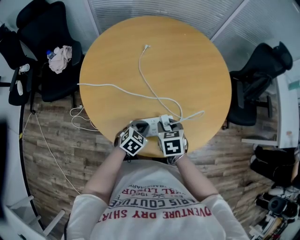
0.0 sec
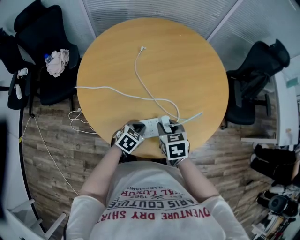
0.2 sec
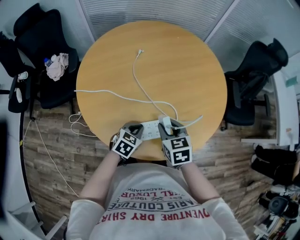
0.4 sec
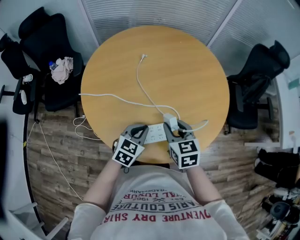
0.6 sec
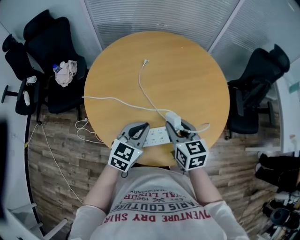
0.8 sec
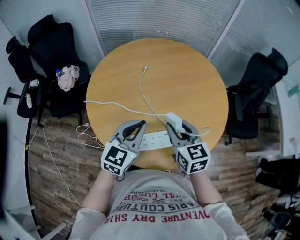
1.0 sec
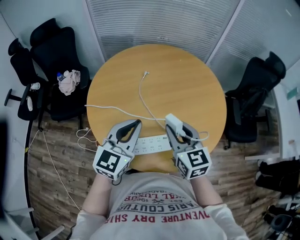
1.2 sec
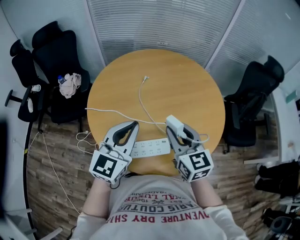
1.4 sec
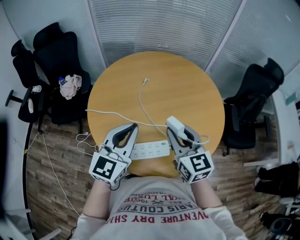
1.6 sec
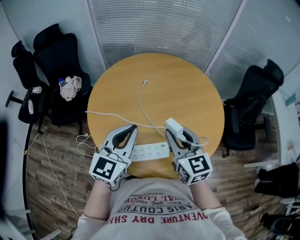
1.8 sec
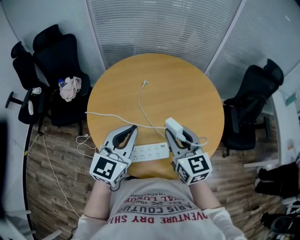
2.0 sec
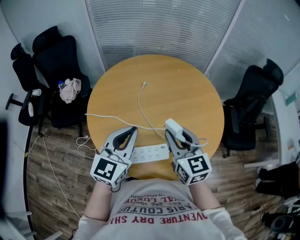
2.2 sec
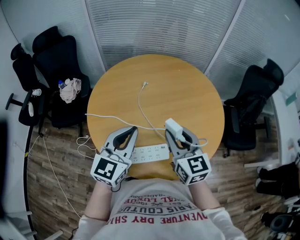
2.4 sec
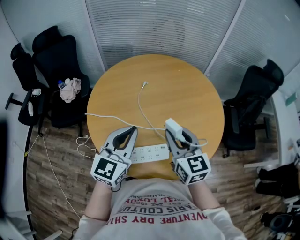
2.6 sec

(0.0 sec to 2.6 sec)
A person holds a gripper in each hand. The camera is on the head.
0.0 sec - 1.2 sec: The left gripper heads upward, covering some 30 cm, and points its fingers approximately 40 degrees further upward. The right gripper shifts some 20 cm upward, and points its fingers approximately 40 degrees further upward.
1.2 sec - 2.6 sec: The grippers move only a little.

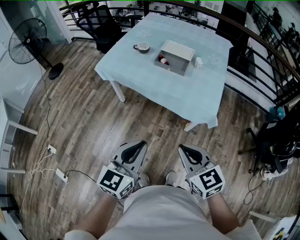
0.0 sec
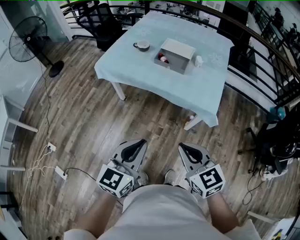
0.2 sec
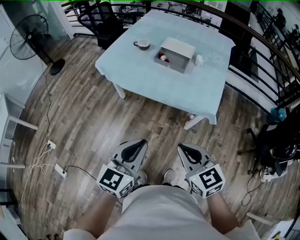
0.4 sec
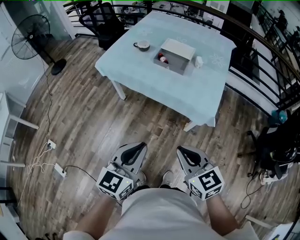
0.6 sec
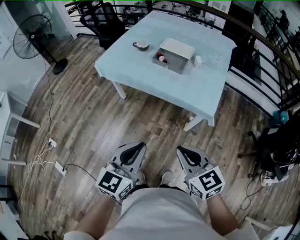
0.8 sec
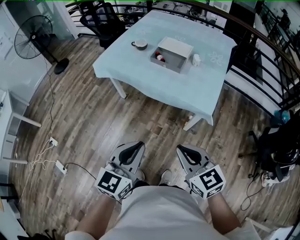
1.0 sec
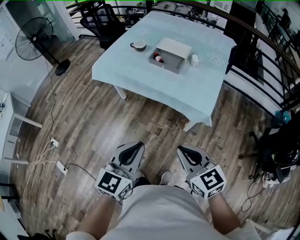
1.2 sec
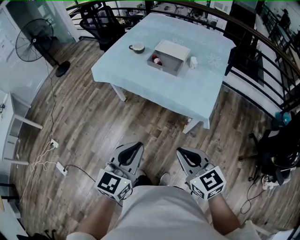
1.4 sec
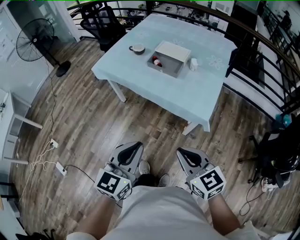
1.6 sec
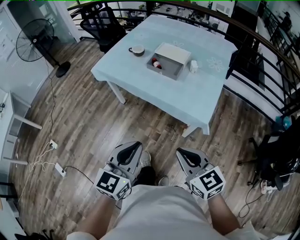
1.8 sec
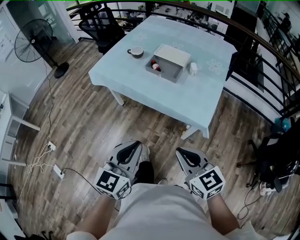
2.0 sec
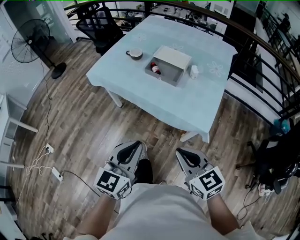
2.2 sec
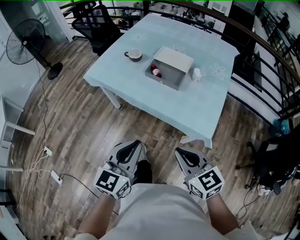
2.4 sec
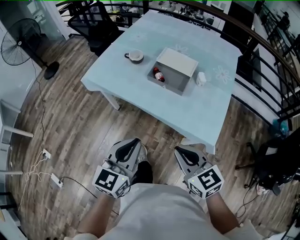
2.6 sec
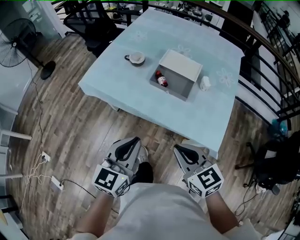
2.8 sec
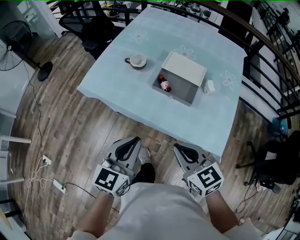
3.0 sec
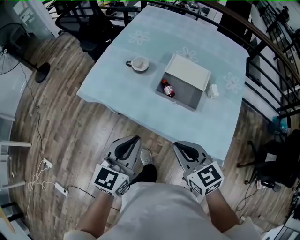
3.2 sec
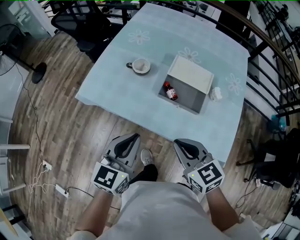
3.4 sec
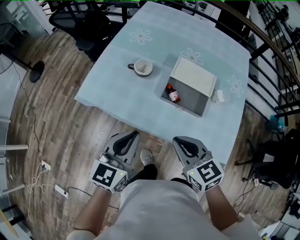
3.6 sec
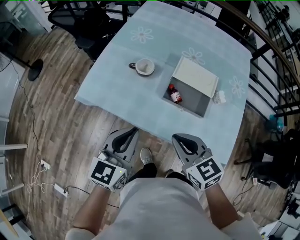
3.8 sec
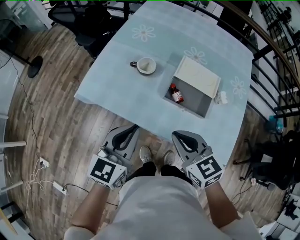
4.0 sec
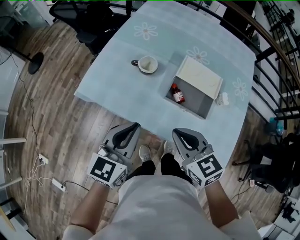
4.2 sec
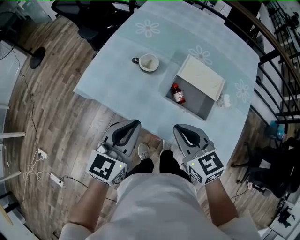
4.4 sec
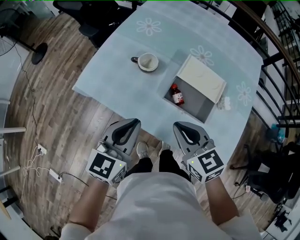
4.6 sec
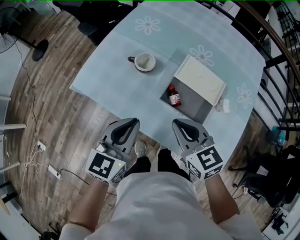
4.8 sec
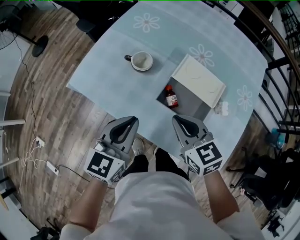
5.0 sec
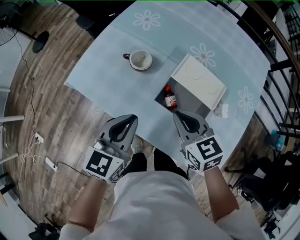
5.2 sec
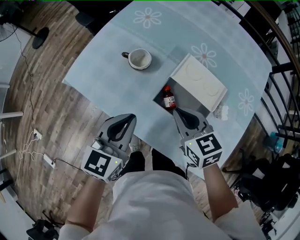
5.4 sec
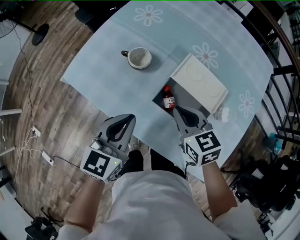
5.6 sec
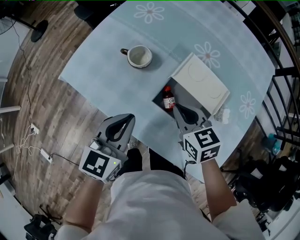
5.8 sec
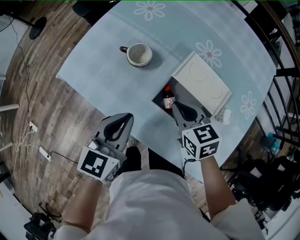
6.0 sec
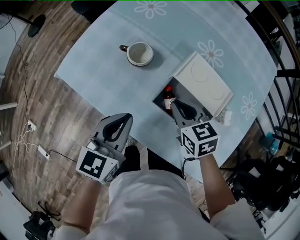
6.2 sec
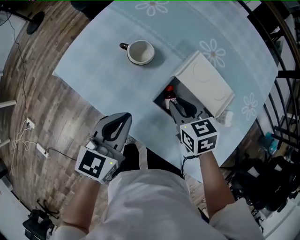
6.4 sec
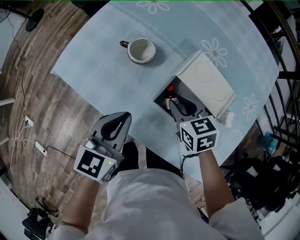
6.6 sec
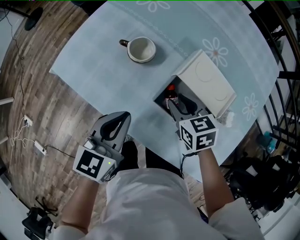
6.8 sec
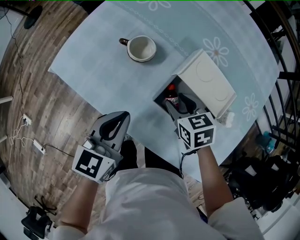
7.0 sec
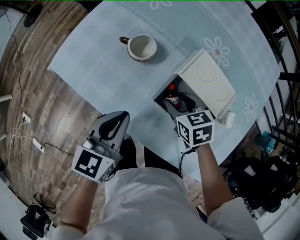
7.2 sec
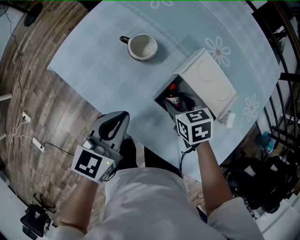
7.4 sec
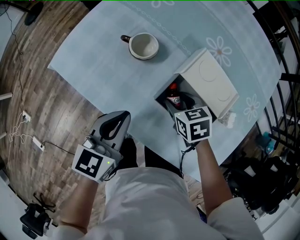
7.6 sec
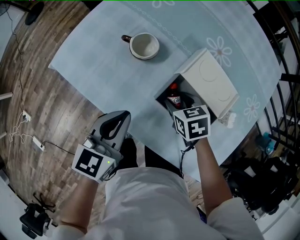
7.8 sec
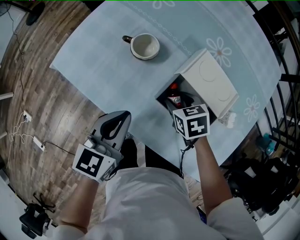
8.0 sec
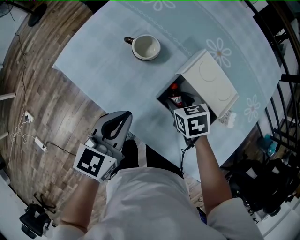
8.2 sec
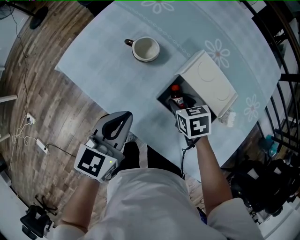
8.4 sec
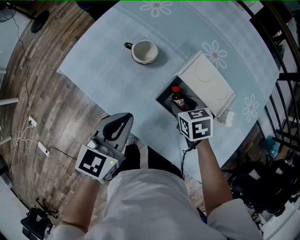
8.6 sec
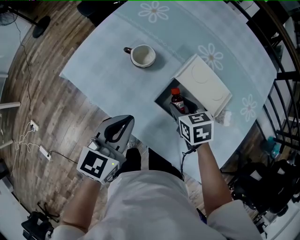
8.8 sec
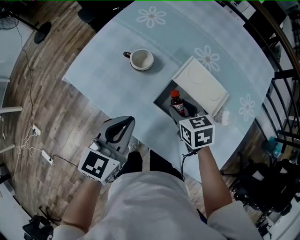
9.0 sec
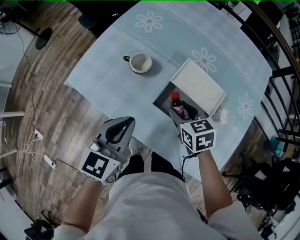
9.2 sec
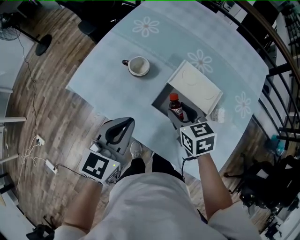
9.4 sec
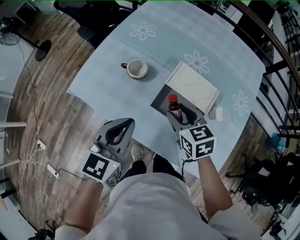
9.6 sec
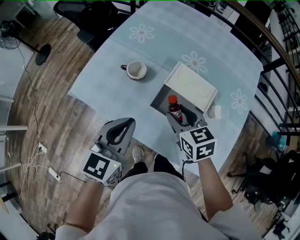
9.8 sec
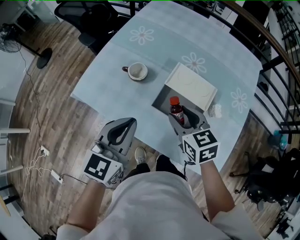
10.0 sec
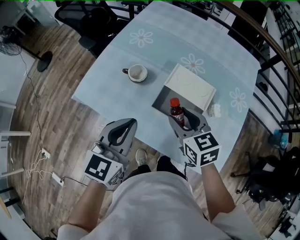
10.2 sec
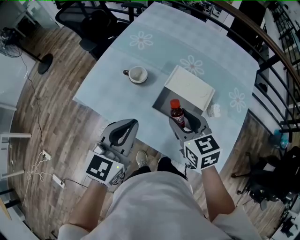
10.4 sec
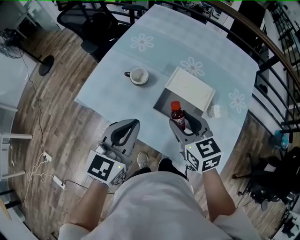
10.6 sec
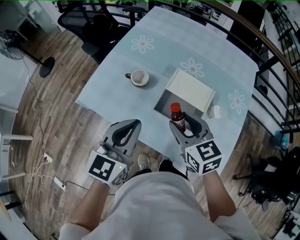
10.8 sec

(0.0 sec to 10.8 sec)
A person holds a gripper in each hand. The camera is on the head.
0.0 sec - 1.6 sec: The two grippers go roughly 10 cm to the right.
1.6 sec - 3.0 sec: The grippers both shift forward by about 30 cm.
3.0 sec - 4.6 sec: Both grippers move forward, about 20 cm.
4.6 sec - 6.2 sec: The right gripper shifts roughly 20 cm downward, forward and to the right; the left gripper travels downward and forward by approximately 10 cm.
6.2 sec - 7.8 sec: The right gripper heads downward, covering roughly 10 cm, and opens its fingers.
7.8 sec - 9.2 sec: The grippers both shift upward by roughly 10 cm.
9.2 sec - 10.8 sec: The right gripper heads upward and backward, covering roughly 15 cm. The left gripper shifts approximately 10 cm upward.

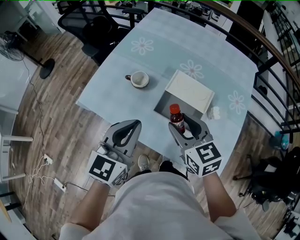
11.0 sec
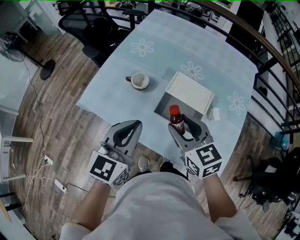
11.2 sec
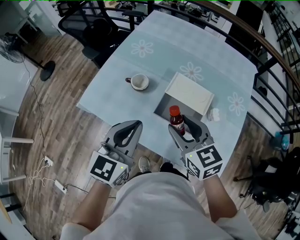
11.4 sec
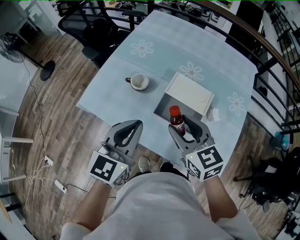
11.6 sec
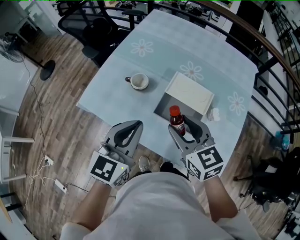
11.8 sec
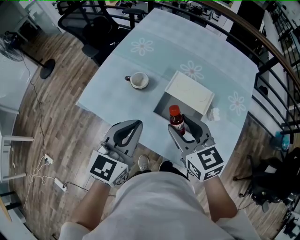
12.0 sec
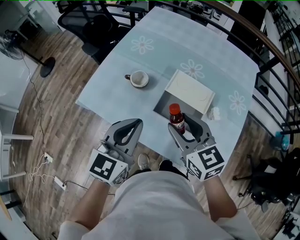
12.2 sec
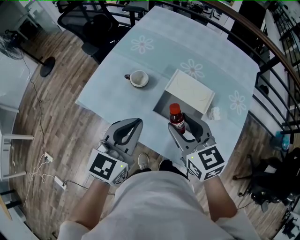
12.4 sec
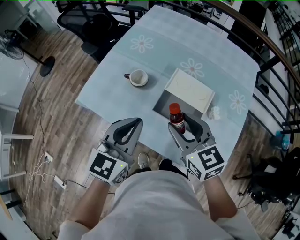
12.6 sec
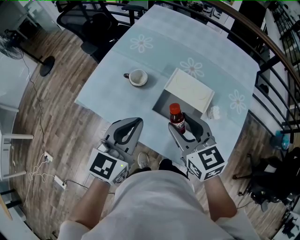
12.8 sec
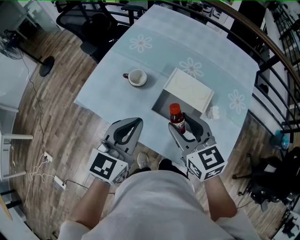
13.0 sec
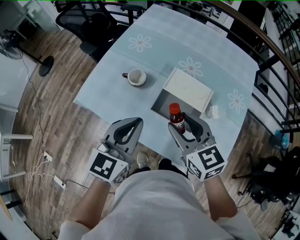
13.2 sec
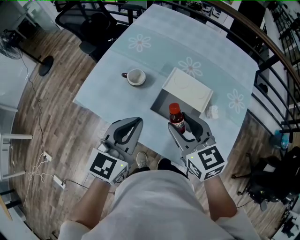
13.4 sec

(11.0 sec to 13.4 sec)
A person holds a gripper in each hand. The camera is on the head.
11.0 sec - 13.4 sec: The grippers make only small movements.

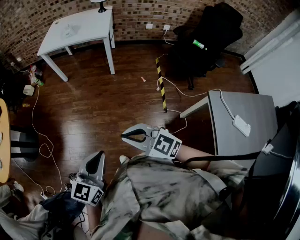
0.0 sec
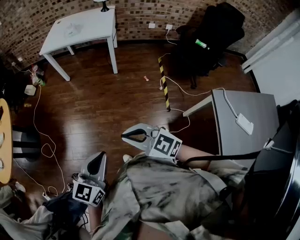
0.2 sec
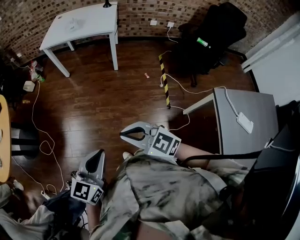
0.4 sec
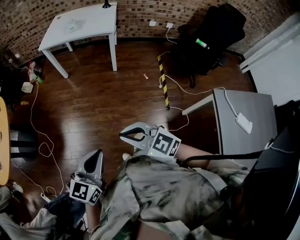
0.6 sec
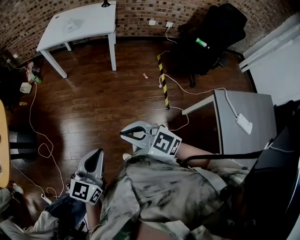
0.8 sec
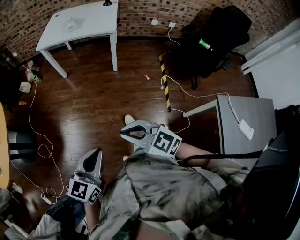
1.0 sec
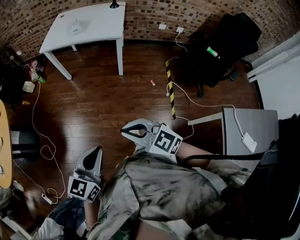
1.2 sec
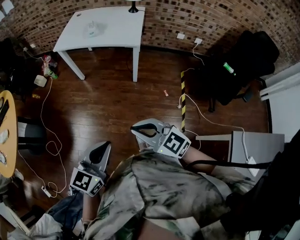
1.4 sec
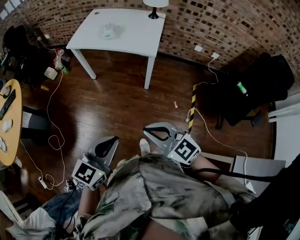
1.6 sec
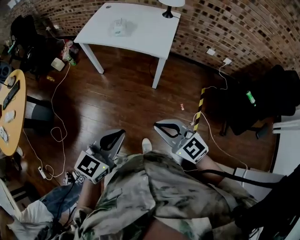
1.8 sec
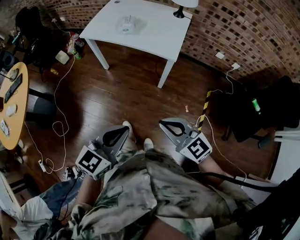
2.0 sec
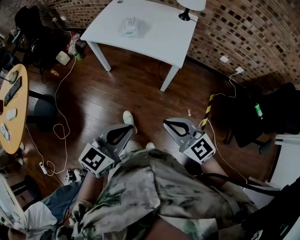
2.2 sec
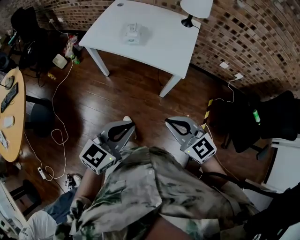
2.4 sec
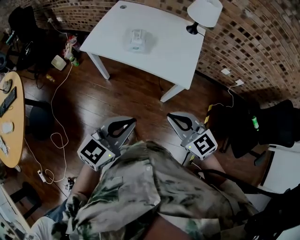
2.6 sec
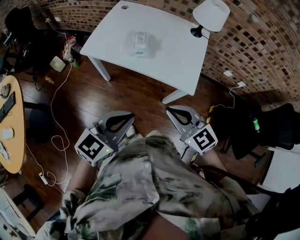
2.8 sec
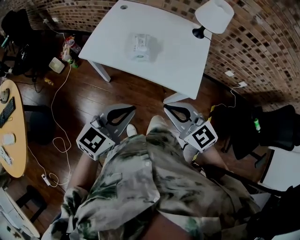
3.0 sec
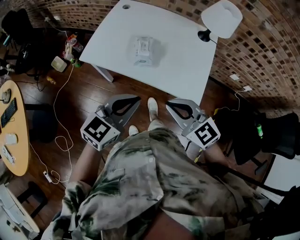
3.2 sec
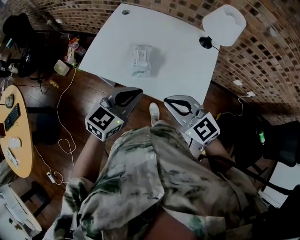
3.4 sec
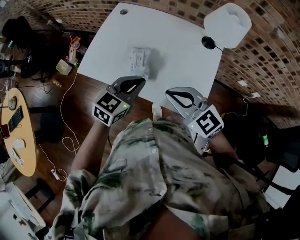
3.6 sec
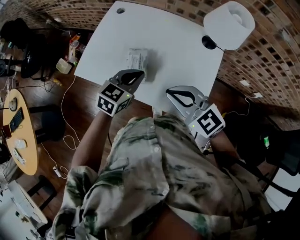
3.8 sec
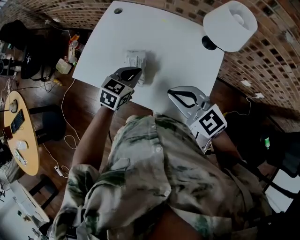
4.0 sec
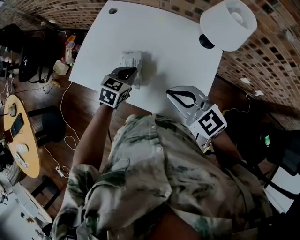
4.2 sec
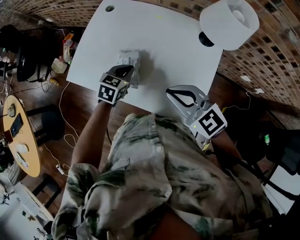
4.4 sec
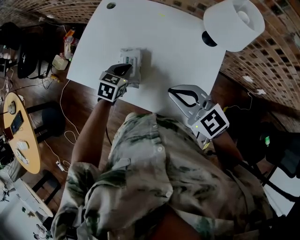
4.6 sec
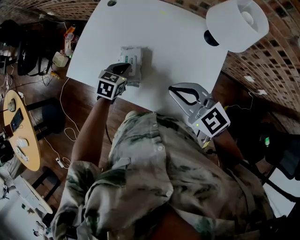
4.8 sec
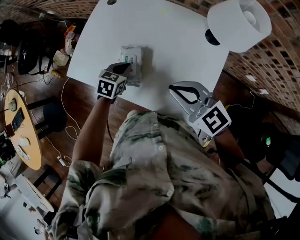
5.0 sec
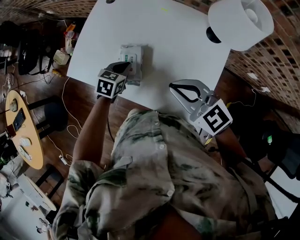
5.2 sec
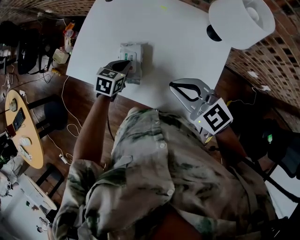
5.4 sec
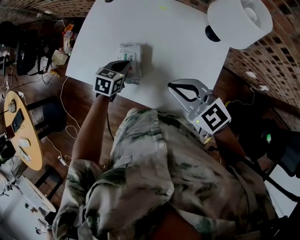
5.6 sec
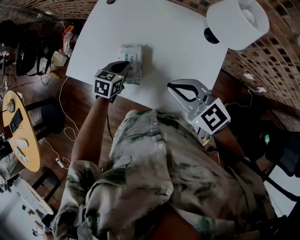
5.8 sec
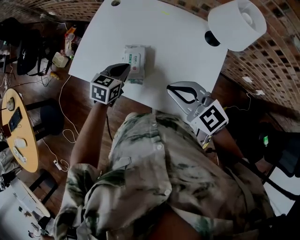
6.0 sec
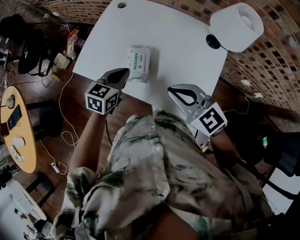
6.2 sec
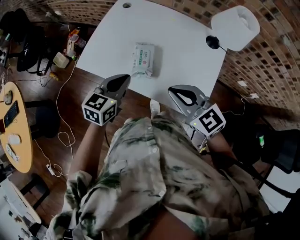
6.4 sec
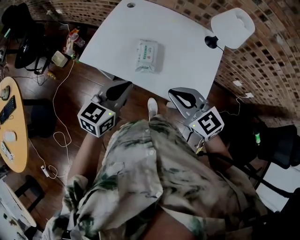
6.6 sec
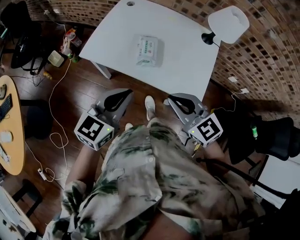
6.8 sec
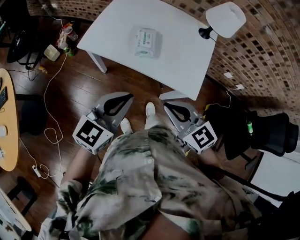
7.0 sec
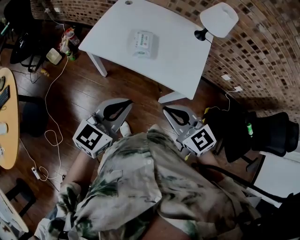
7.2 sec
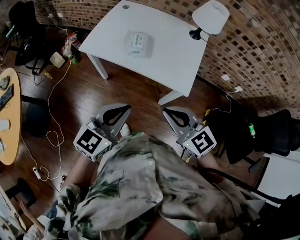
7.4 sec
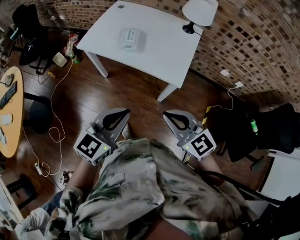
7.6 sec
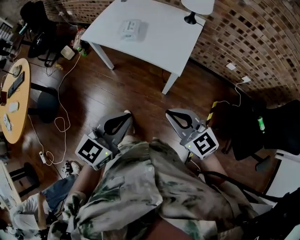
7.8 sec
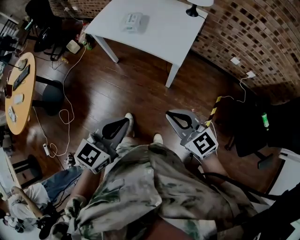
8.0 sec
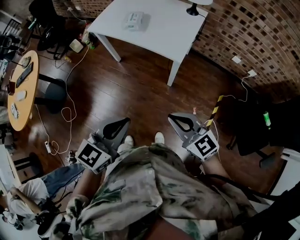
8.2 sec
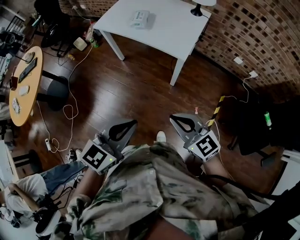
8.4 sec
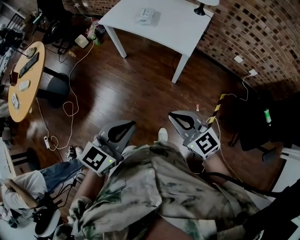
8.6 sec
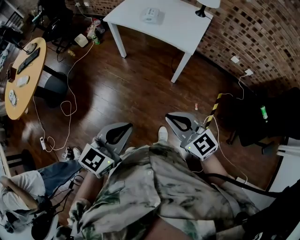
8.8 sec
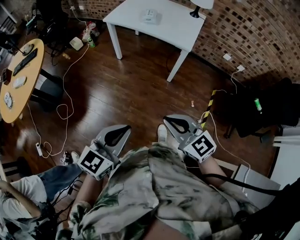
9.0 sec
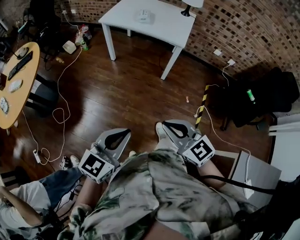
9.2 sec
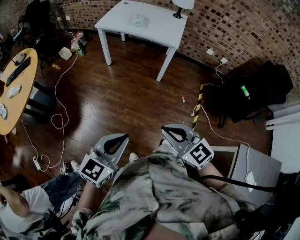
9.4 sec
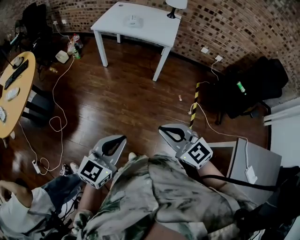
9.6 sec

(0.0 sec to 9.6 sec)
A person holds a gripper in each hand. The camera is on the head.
0.0 sec - 1.6 sec: Both grippers move forward, roughly 30 cm.
1.6 sec - 3.2 sec: The pair of grippers is taken forward, roughly 50 cm.
3.2 sec - 4.8 sec: The left gripper travels forward and downward by approximately 35 cm, and tips its fingers downward by some 30 degrees, while the right gripper shifts some 20 cm forward and to the right.
4.8 sec - 6.4 sec: The left gripper is displaced upward, backward and to the left by approximately 20 cm, and changes its angle by about 20 degrees; the right gripper shifts approximately 10 cm to the left and backward.
6.4 sec - 8.0 sec: The pair of grippers is taken backward, roughly 50 cm.
8.0 sec - 9.6 sec: Both grippers are carried backward and to the left, roughly 40 cm.
